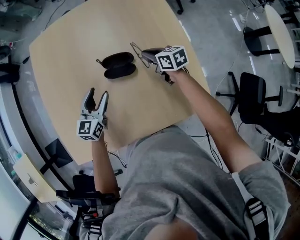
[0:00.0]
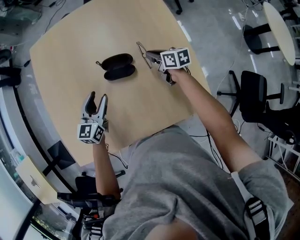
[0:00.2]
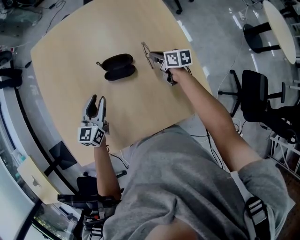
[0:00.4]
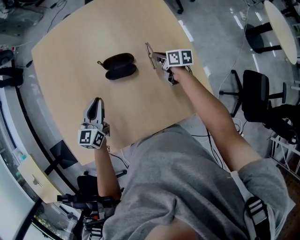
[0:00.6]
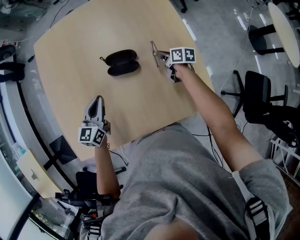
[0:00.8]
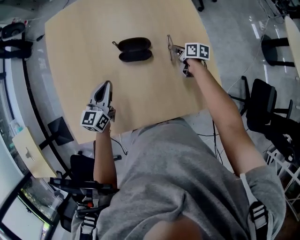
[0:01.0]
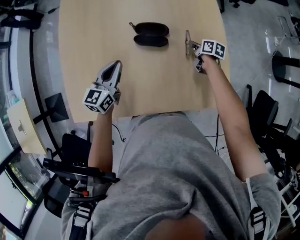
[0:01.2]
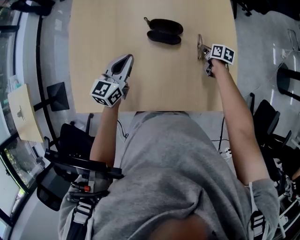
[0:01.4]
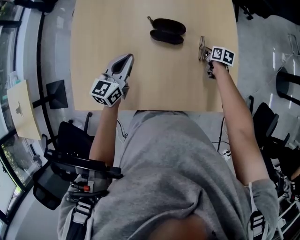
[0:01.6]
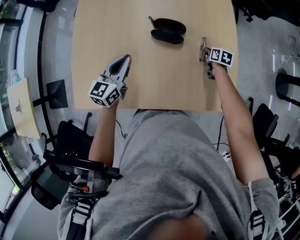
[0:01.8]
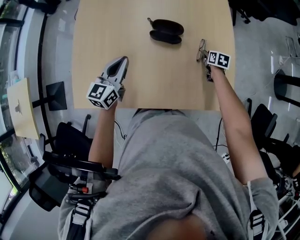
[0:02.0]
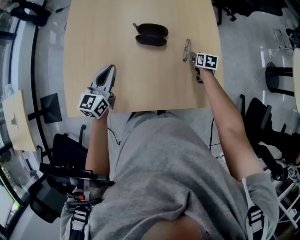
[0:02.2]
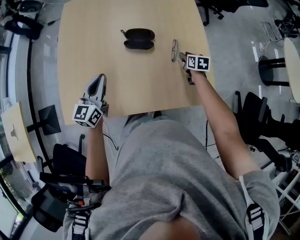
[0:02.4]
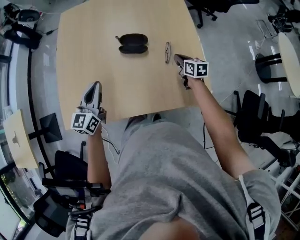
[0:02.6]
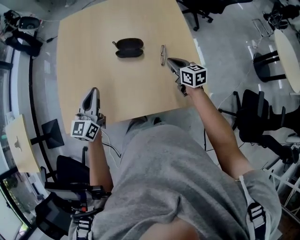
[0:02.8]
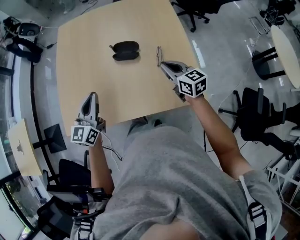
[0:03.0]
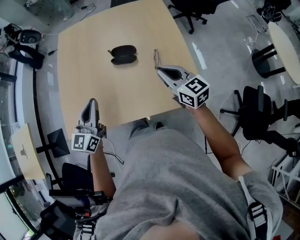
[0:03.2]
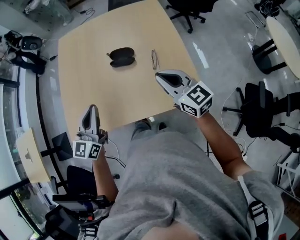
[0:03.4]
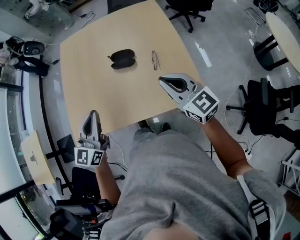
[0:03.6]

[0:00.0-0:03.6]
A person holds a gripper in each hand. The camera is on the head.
0:00.0 to 0:01.8: The left gripper travels backward and to the left by roughly 10 cm, and closes; the right gripper heads downward, to the right and backward, covering approximately 15 cm, and changes its angle by roughly 30 degrees.
0:01.8 to 0:03.6: The left gripper shifts roughly 25 cm backward and upward. Meanwhile the right gripper moves upward and backward, some 50 cm, angles its fingers upward, by approximately 50 degrees, and opens and closes again.

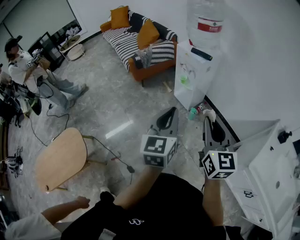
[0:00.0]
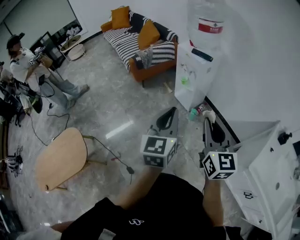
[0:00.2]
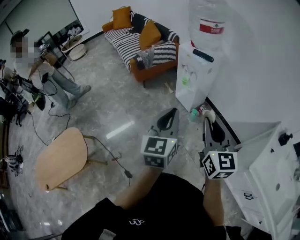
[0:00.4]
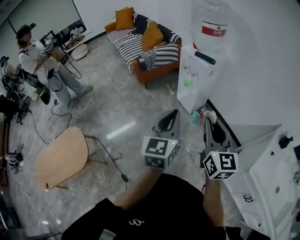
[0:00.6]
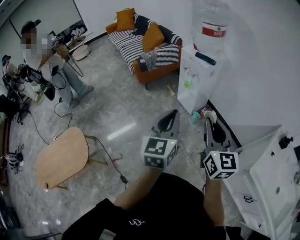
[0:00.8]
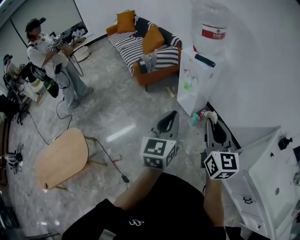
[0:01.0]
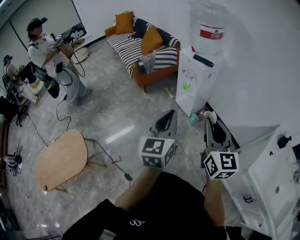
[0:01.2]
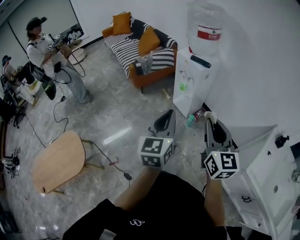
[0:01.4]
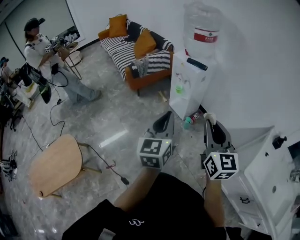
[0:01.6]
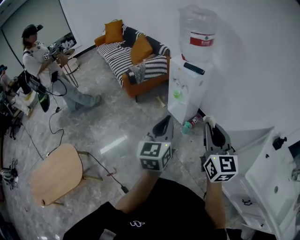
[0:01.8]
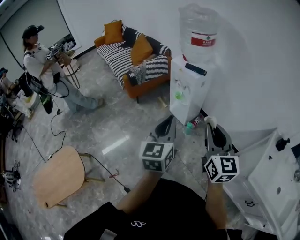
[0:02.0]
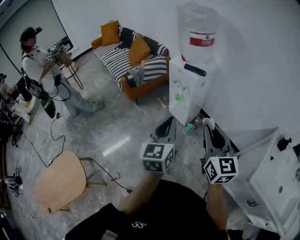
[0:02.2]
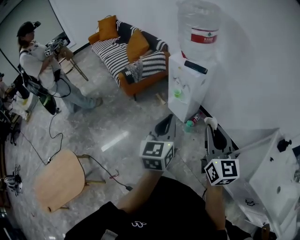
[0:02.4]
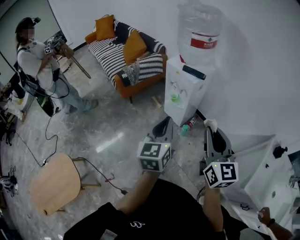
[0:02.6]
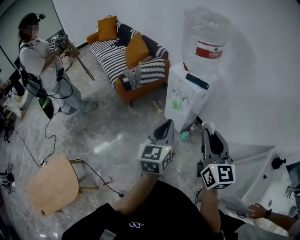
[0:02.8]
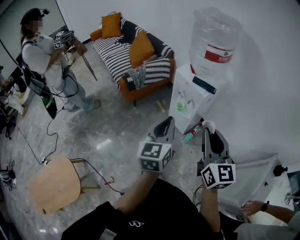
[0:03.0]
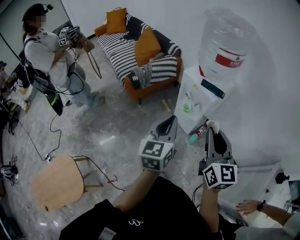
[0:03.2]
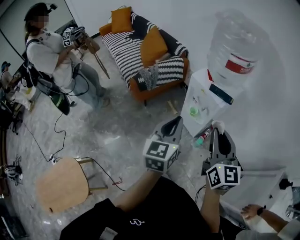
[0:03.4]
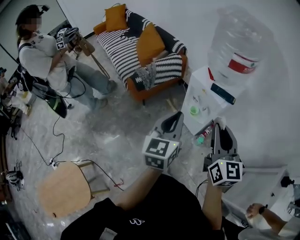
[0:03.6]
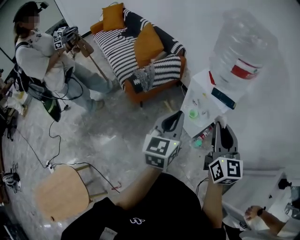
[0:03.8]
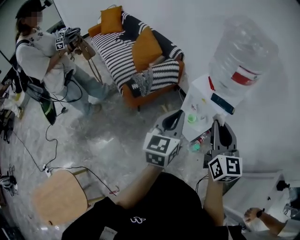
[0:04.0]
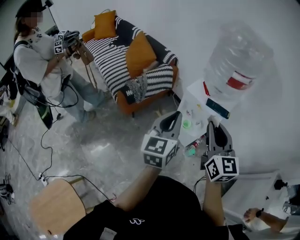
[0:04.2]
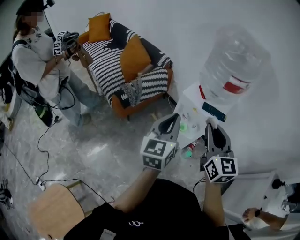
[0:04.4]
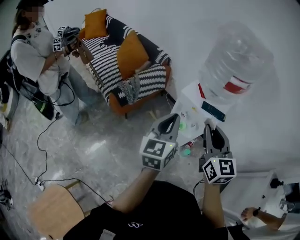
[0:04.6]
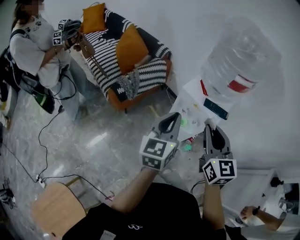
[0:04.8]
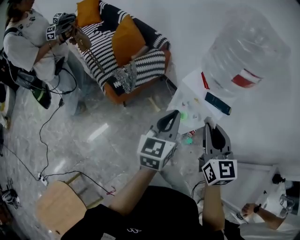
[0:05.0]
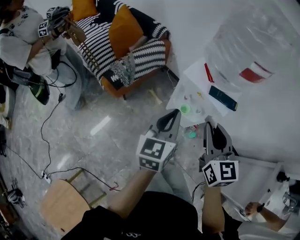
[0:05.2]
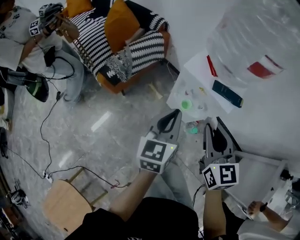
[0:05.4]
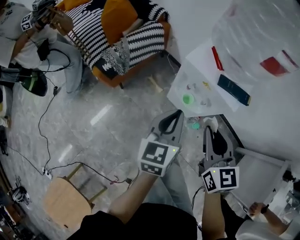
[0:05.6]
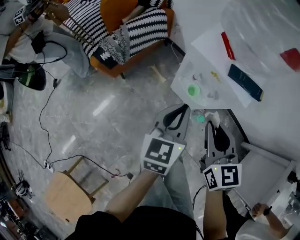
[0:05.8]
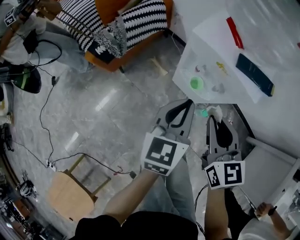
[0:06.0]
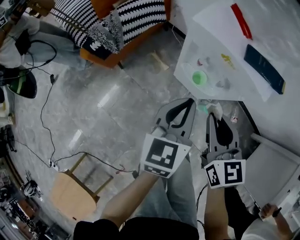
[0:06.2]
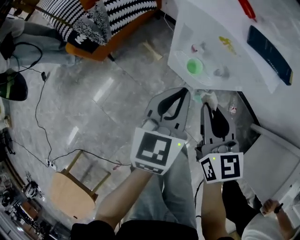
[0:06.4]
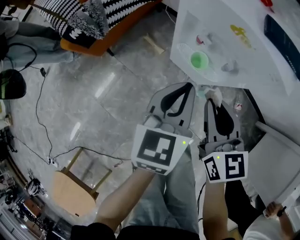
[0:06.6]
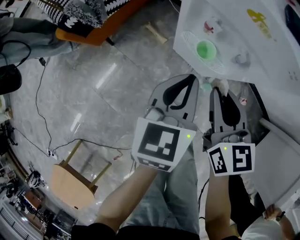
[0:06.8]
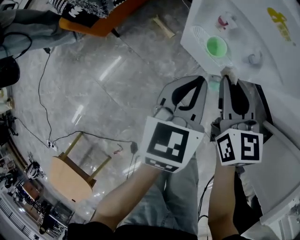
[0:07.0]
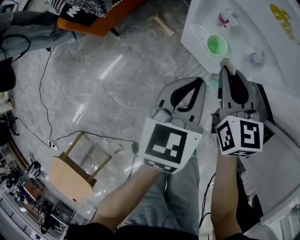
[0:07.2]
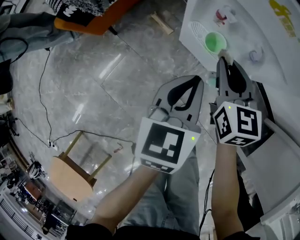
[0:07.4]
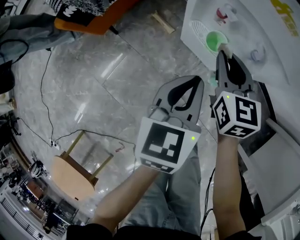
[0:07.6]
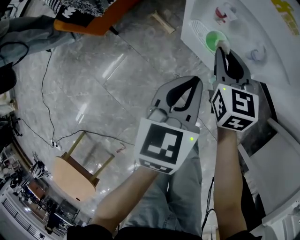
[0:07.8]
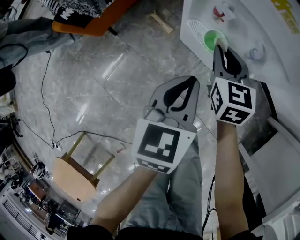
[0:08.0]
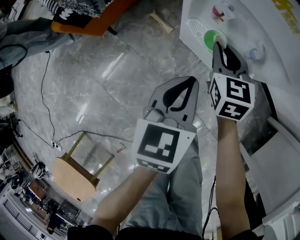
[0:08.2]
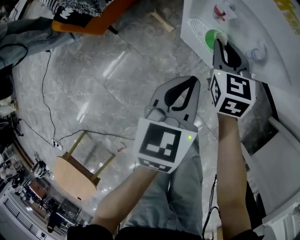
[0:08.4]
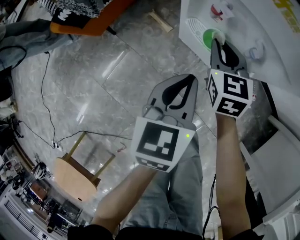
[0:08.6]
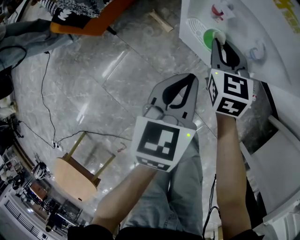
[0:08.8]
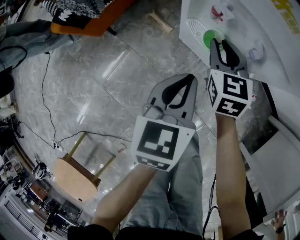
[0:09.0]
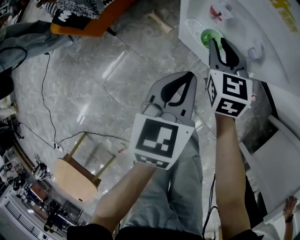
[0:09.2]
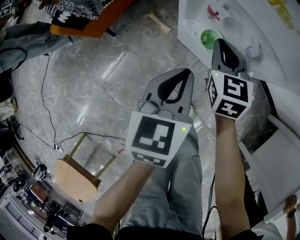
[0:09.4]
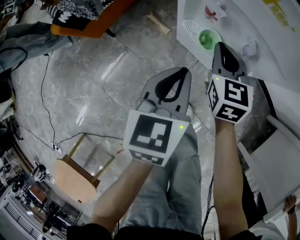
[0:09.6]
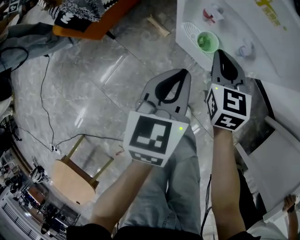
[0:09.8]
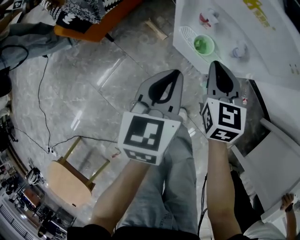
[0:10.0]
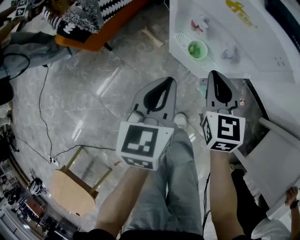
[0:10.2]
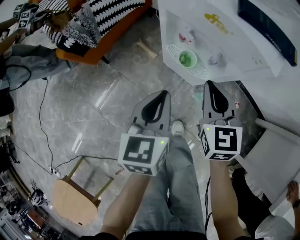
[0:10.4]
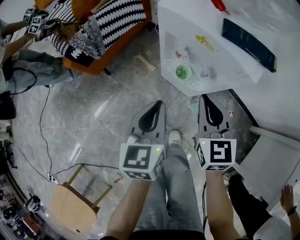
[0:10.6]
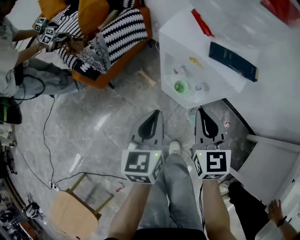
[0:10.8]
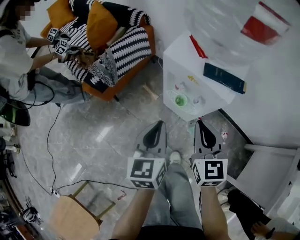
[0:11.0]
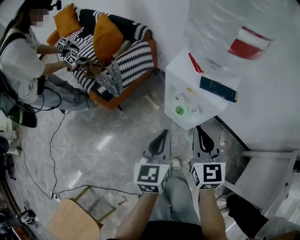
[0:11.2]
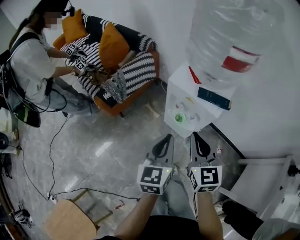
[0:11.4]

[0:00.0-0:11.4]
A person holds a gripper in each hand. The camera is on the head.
0:00.0 to 0:01.4: The grippers make only small movements.
0:01.4 to 0:02.8: The two grippers go approximately 20 cm forward.
0:02.8 to 0:04.2: Both grippers move forward and to the left, approximately 25 cm.
0:04.2 to 0:05.6: The right gripper travels downward by about 20 cm; the left gripper travels downward and forward by some 20 cm.
0:05.6 to 0:07.2: Both grippers move downward, some 25 cm.
0:07.2 to 0:08.6: The right gripper moves downward and forward, roughly 10 cm.
0:08.6 to 0:10.0: The right gripper goes about 5 cm backward.
0:10.0 to 0:11.4: The two grippers go roughly 30 cm upward.

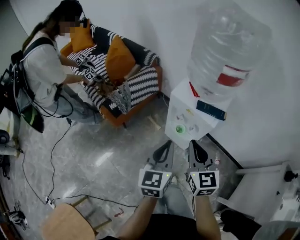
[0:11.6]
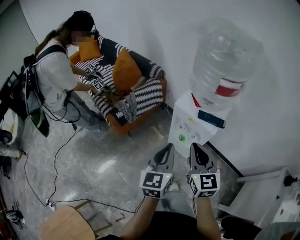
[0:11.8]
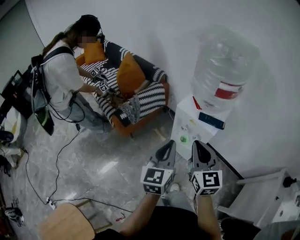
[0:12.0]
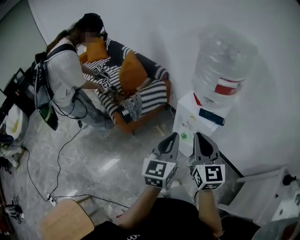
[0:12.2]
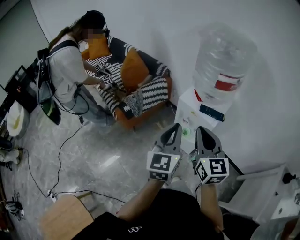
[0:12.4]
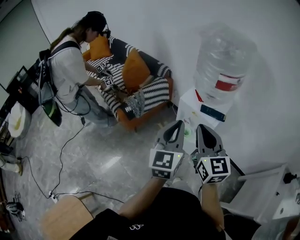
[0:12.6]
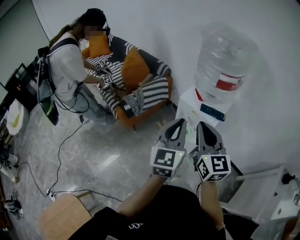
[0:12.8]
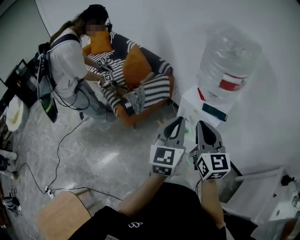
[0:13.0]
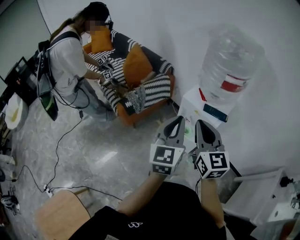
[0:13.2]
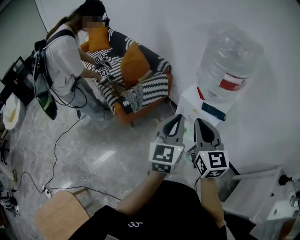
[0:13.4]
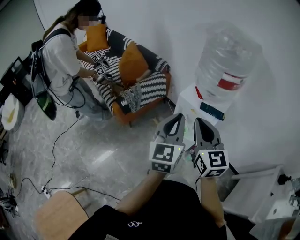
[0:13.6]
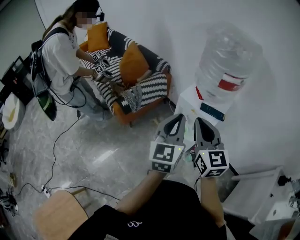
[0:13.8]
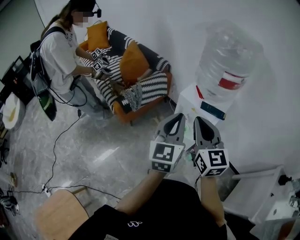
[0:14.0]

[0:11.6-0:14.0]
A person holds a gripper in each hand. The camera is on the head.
0:11.6 to 0:12.8: The two grippers go roughly 15 cm upward.
0:12.8 to 0:14.0: The grippers make only small movements.

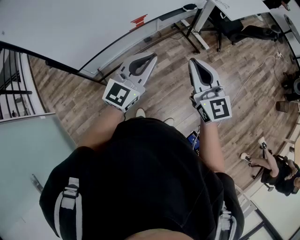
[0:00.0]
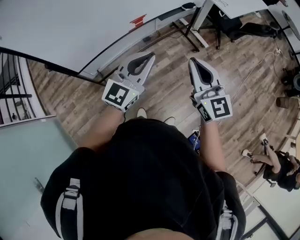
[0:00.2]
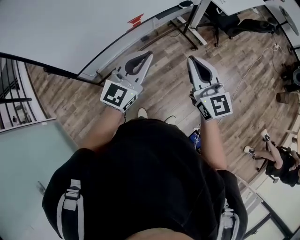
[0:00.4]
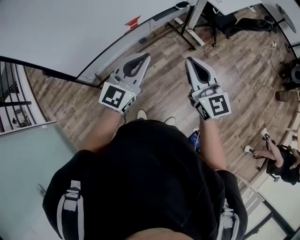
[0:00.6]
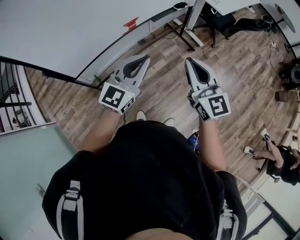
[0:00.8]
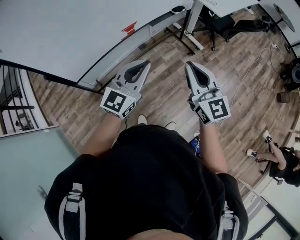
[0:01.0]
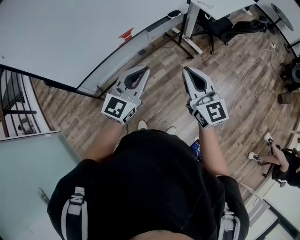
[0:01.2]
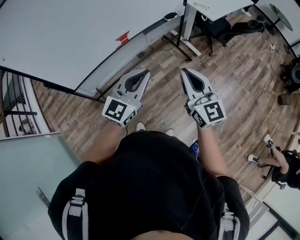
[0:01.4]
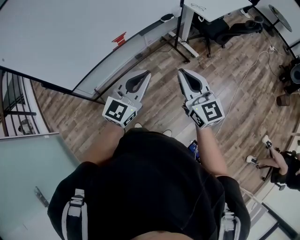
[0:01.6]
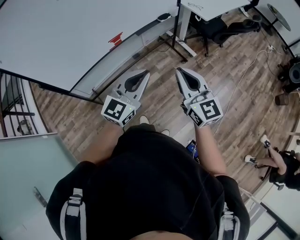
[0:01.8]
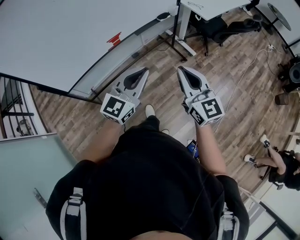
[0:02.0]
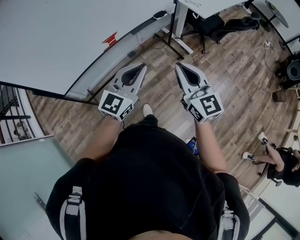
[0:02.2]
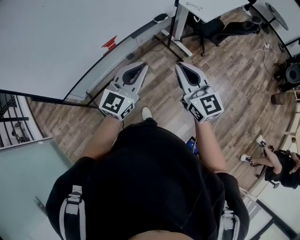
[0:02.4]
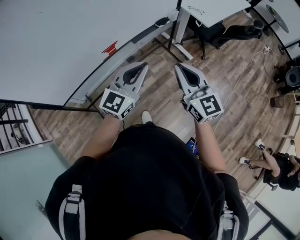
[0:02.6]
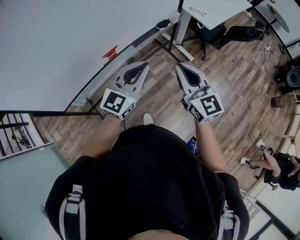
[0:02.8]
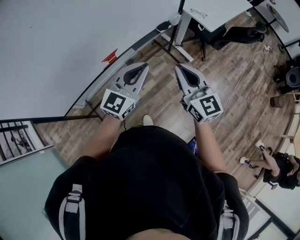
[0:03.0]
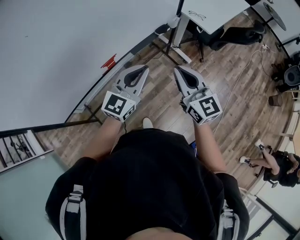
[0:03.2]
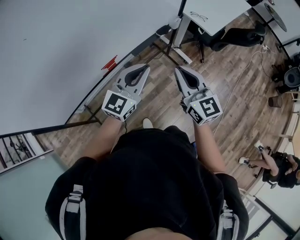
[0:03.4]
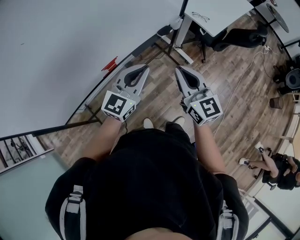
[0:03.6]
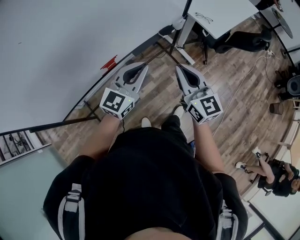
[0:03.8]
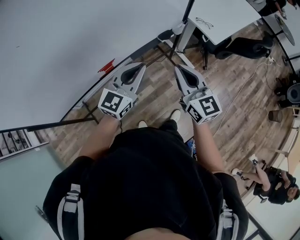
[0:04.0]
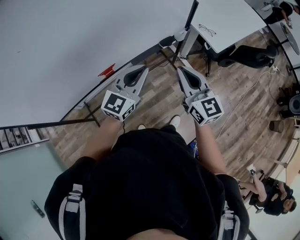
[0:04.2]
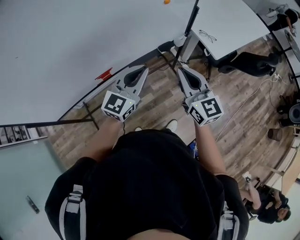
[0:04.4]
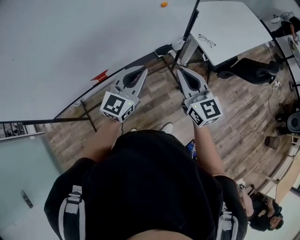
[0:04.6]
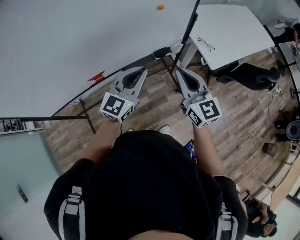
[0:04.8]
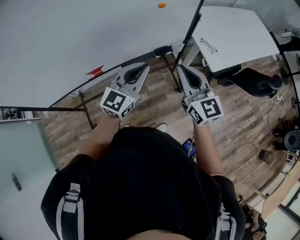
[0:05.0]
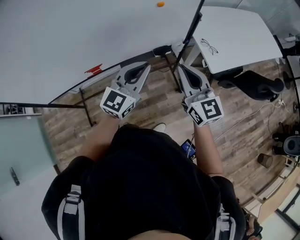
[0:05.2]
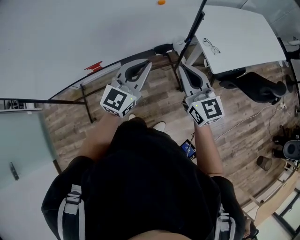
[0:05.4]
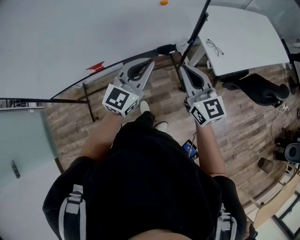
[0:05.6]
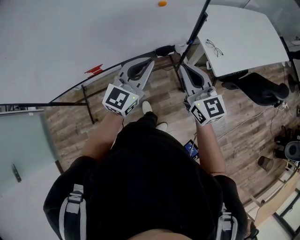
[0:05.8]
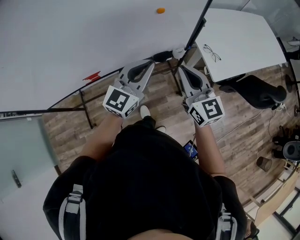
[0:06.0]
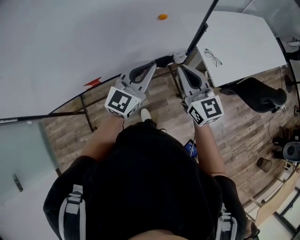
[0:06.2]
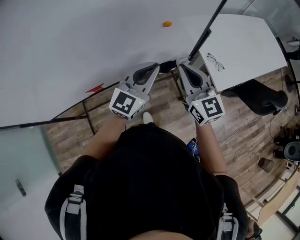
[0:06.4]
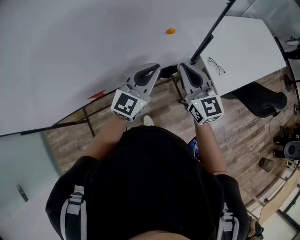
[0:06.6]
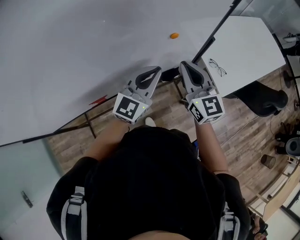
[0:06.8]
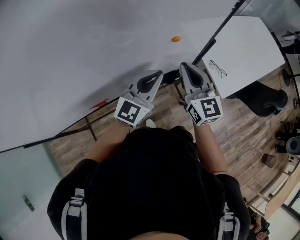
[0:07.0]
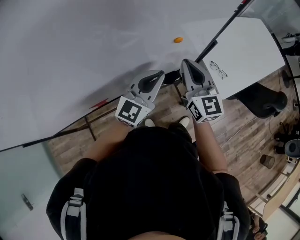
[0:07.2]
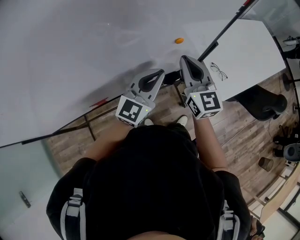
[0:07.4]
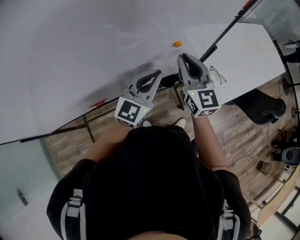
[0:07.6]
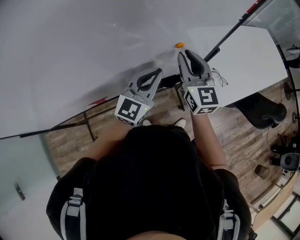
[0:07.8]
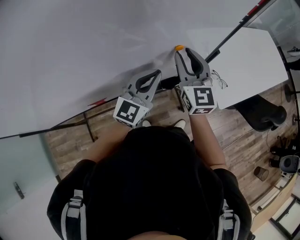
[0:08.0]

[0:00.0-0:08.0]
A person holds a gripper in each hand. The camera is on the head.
0:00.0 to 0:01.6: The grippers both shift to the right by about 10 cm.
0:01.6 to 0:03.2: Both grippers travel together forward, some 25 cm.
0:03.2 to 0:04.8: Both grippers travel together forward and to the right, about 20 cm.
0:04.8 to 0:06.4: The two grippers go about 15 cm forward.
0:06.4 to 0:08.0: The right gripper is displaced forward by some 15 cm, and opens. The left gripper moves forward, roughly 5 cm.
